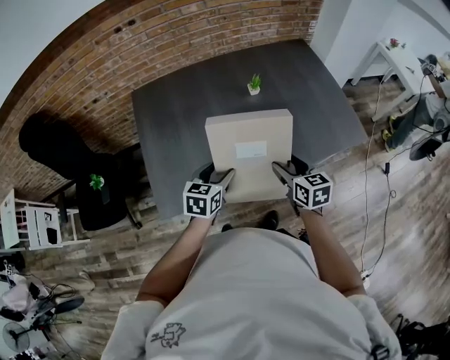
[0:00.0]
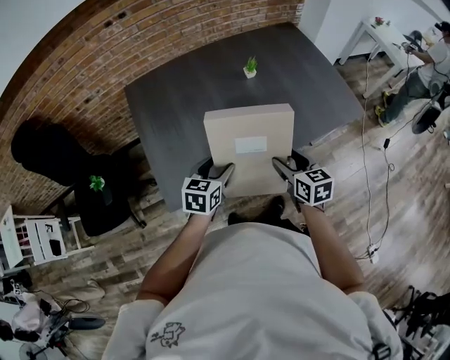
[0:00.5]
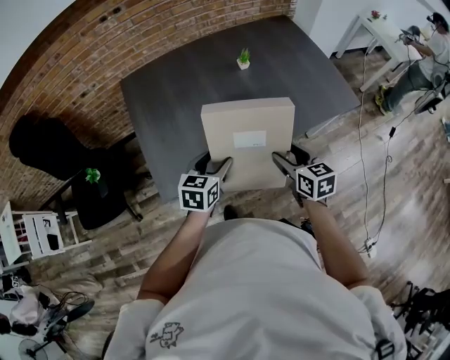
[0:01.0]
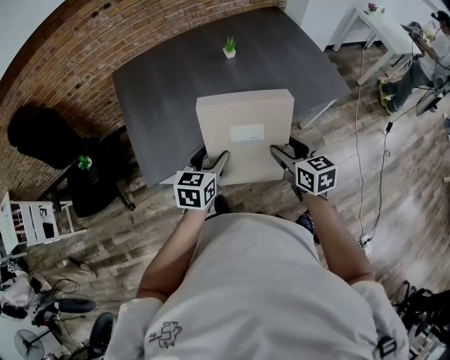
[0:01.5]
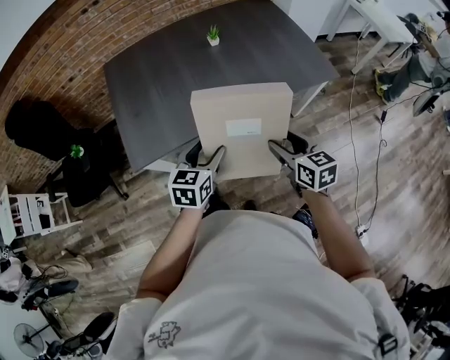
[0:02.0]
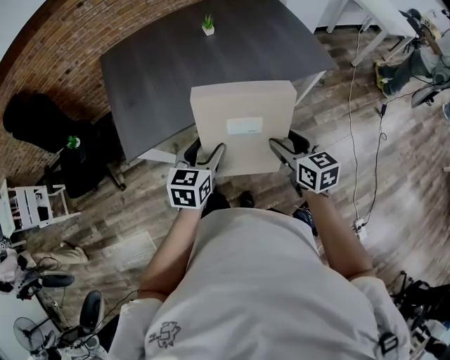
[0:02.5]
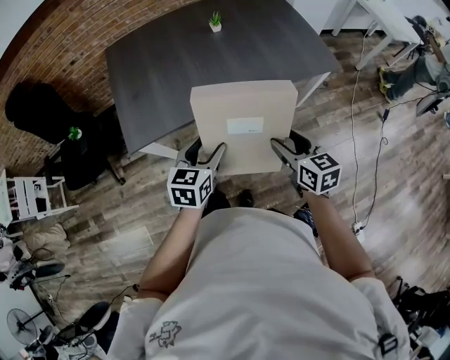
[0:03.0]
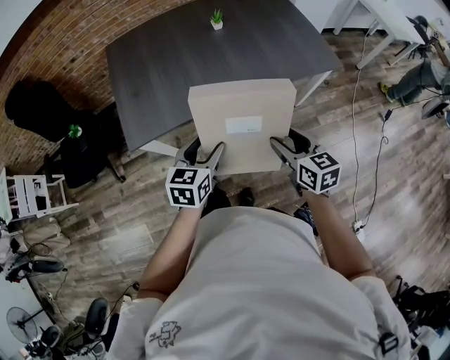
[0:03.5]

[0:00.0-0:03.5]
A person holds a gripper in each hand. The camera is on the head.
0:00.0 to 0:02.0: Both grippers move backward and to the right, some 20 cm.
0:02.0 to 0:03.5: The left gripper travels backward by approximately 5 cm.

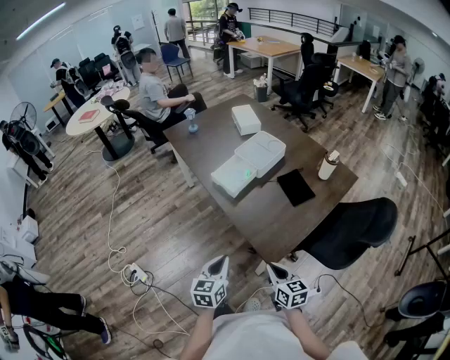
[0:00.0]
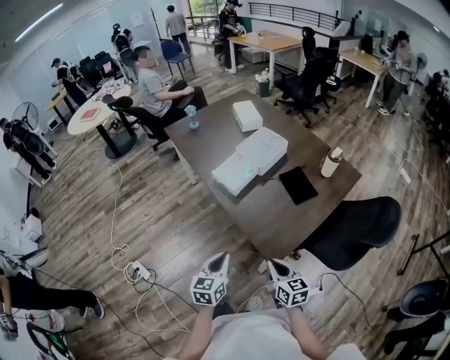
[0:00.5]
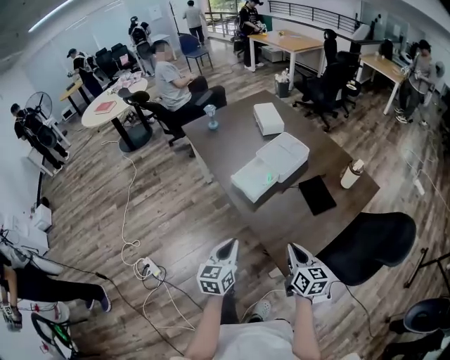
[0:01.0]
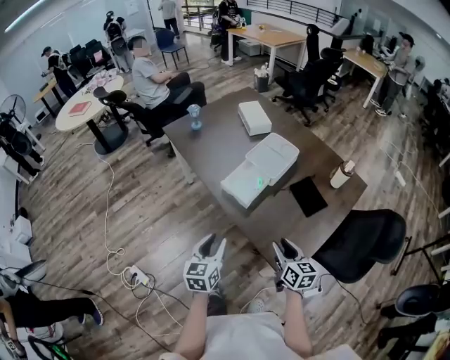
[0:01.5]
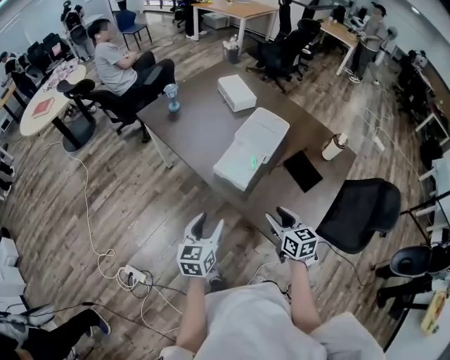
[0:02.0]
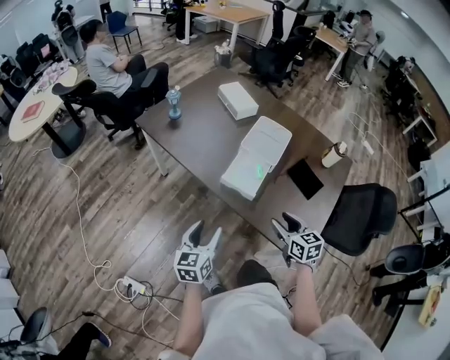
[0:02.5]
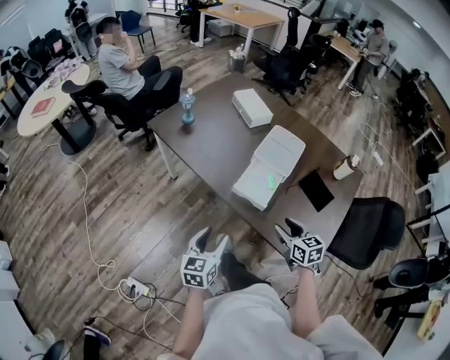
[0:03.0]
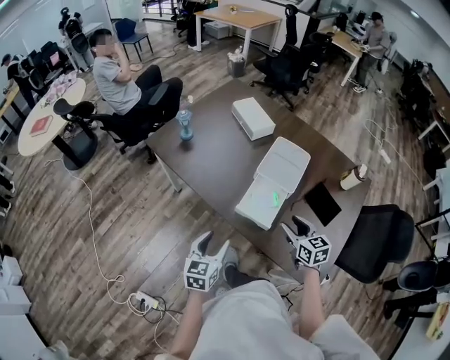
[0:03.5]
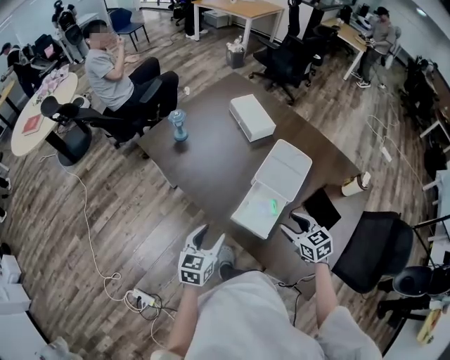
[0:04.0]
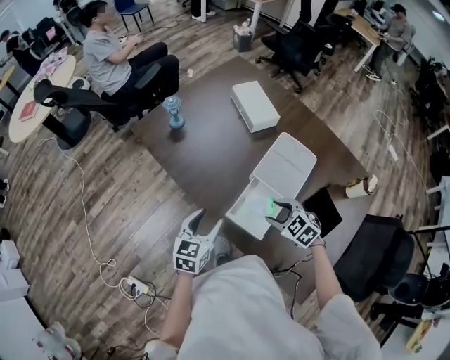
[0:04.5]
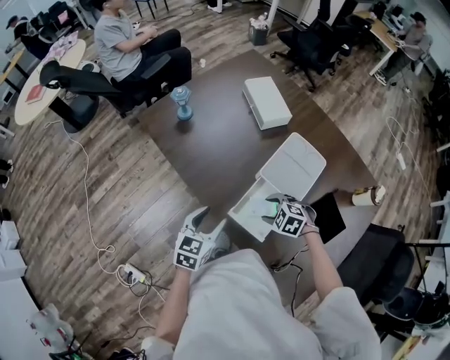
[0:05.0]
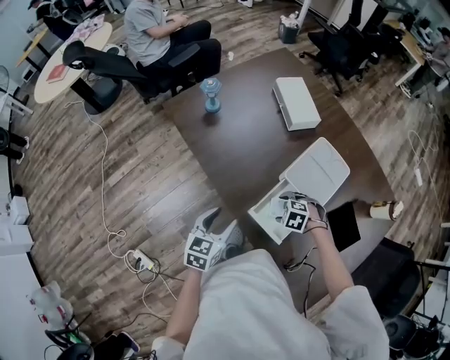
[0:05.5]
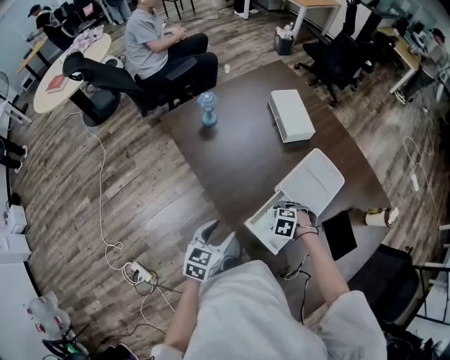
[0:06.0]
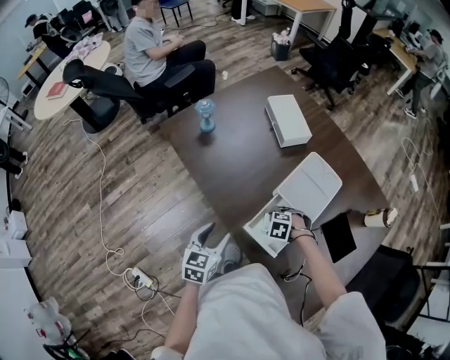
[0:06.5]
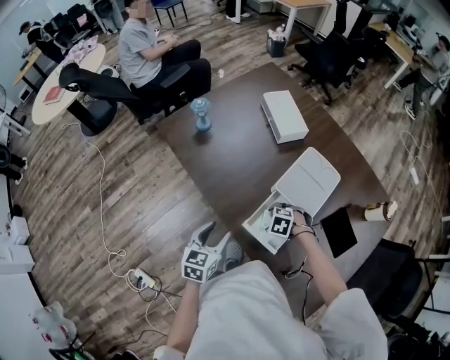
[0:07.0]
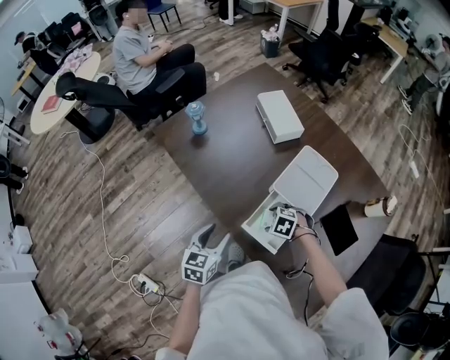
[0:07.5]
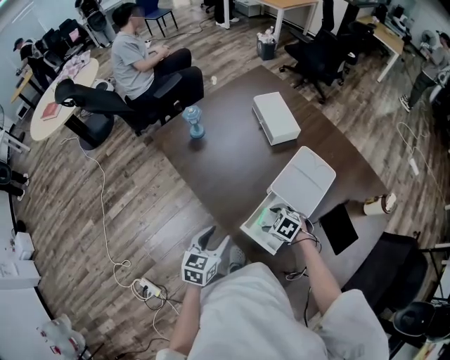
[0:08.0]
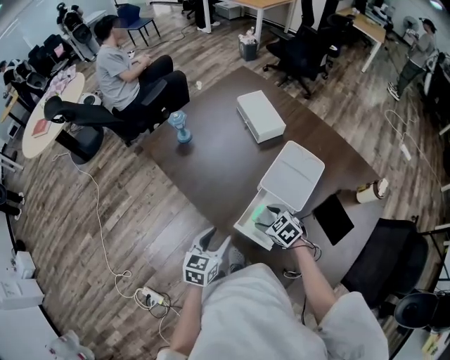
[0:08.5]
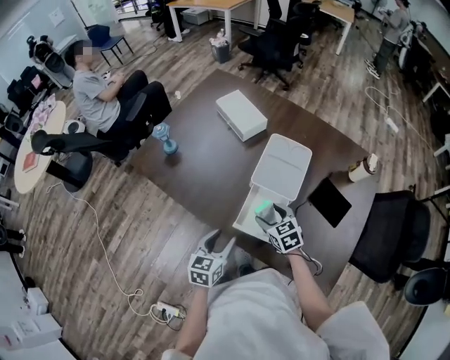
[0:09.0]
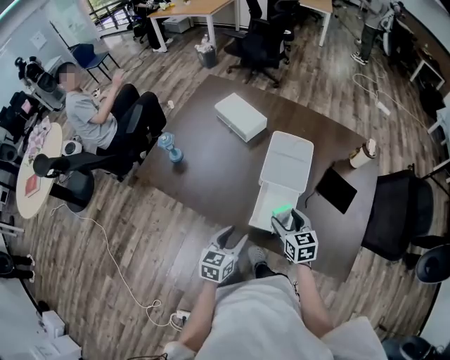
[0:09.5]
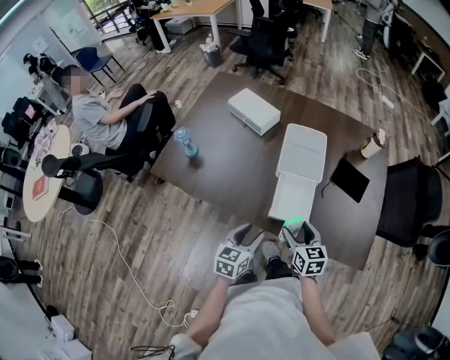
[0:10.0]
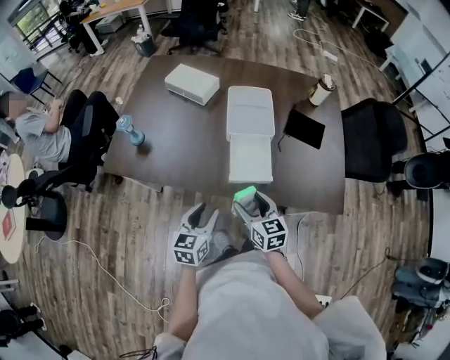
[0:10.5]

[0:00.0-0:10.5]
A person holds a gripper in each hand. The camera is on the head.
0:00.0 to 0:02.0: The left gripper goes roughly 30 cm forward and to the left, and opens. Meanwhile the right gripper is displaced forward by roughly 25 cm, and opens up.
0:02.0 to 0:04.0: Both grippers move forward, approximately 20 cm. The right gripper changes its angle by roughly 20 degrees.
0:04.0 to 0:06.5: The left gripper changes place by about 5 cm. Meanwhile the right gripper goes about 20 cm downward, and tips its fingers downward by approximately 40 degrees.
0:06.5 to 0:08.5: The right gripper is displaced upward by some 5 cm, and rotates roughly 50 degrees.
0:08.5 to 0:10.5: The right gripper changes place by approximately 20 cm, and changes its angle by approximately 70 degrees. Meanwhile the left gripper ends up roughly 10 cm from where it was, and turns by approximately 30 degrees.

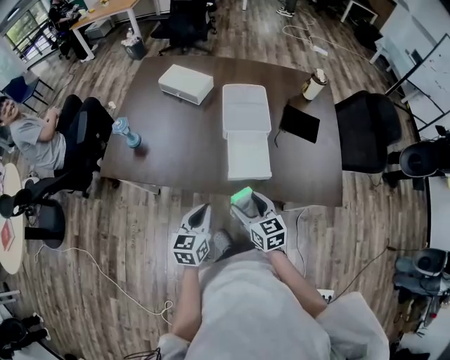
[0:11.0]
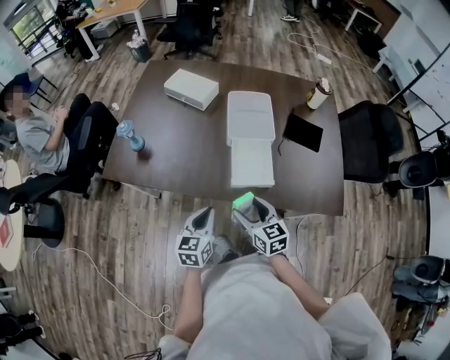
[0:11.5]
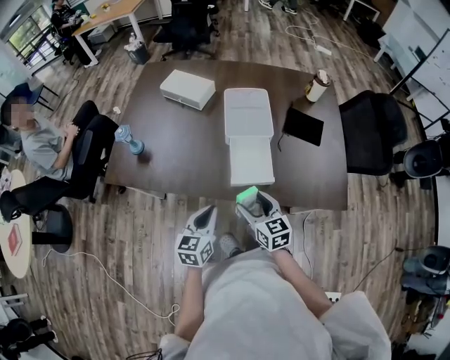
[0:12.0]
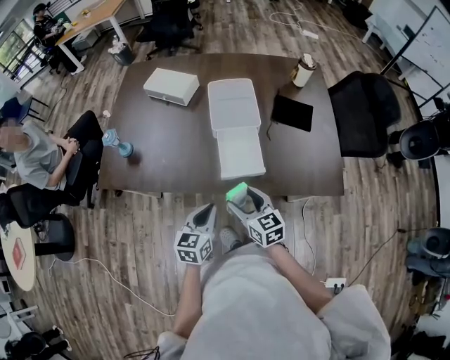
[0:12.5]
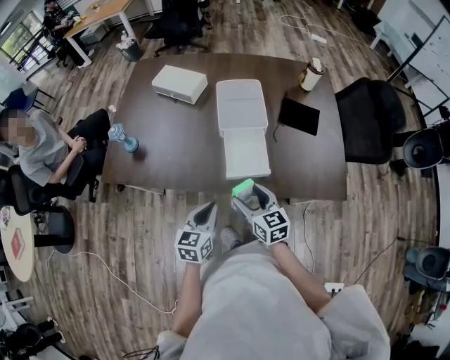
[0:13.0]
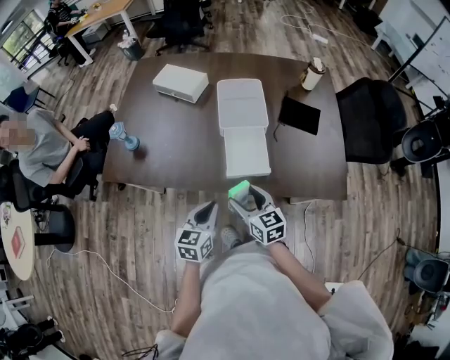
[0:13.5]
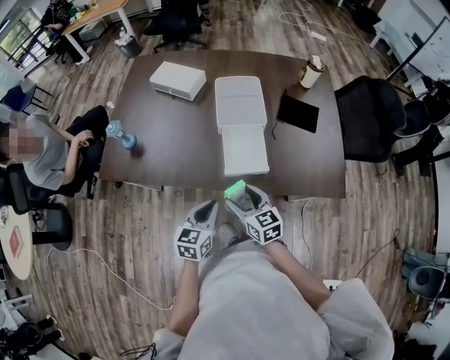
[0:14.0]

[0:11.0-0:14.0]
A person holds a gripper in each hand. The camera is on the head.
0:11.0 to 0:14.0: The grippers make only small movements.

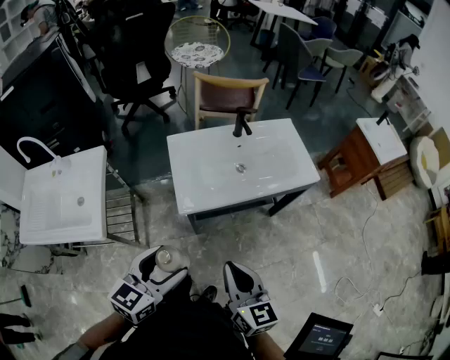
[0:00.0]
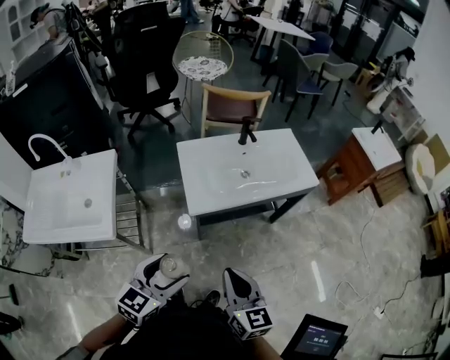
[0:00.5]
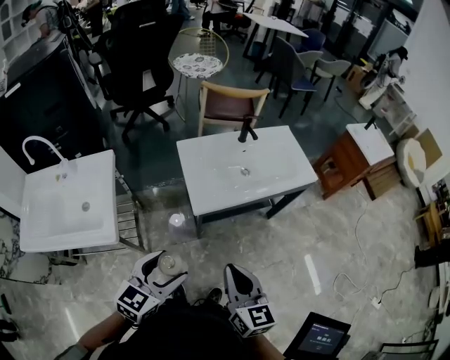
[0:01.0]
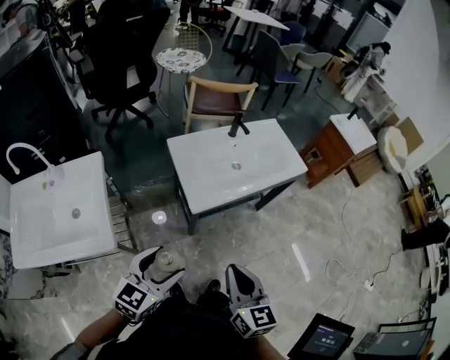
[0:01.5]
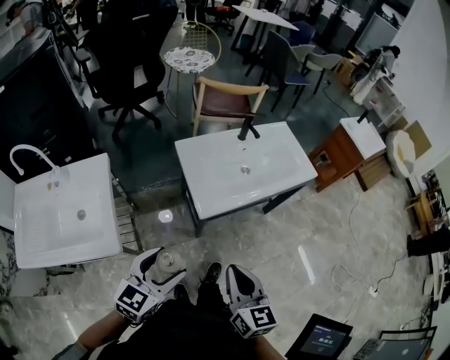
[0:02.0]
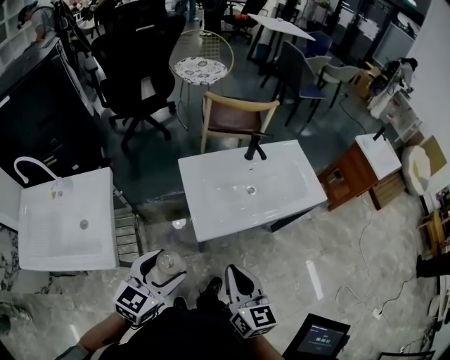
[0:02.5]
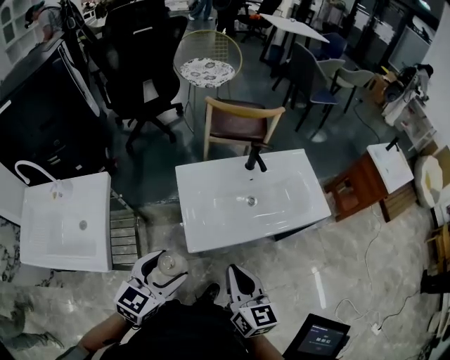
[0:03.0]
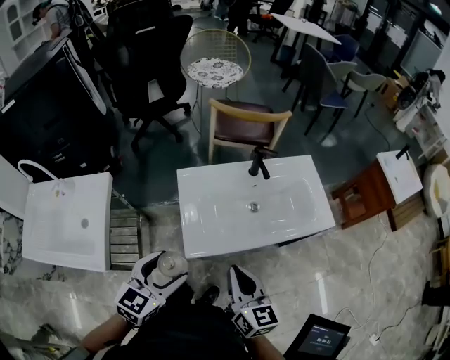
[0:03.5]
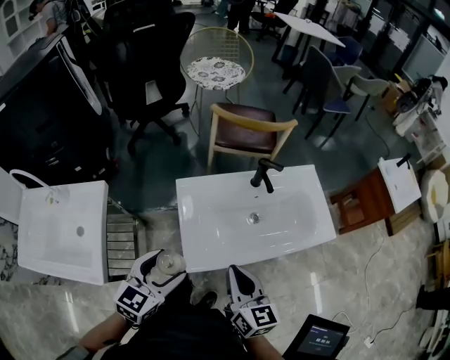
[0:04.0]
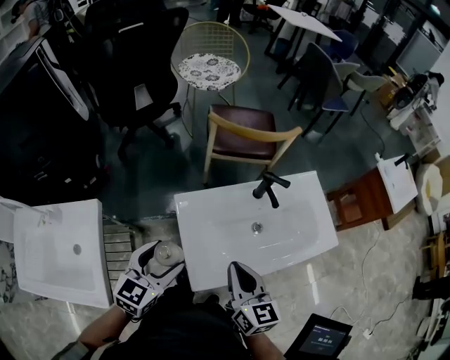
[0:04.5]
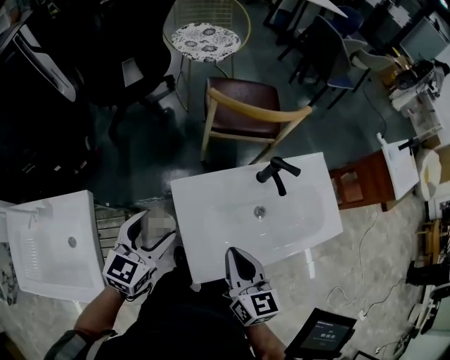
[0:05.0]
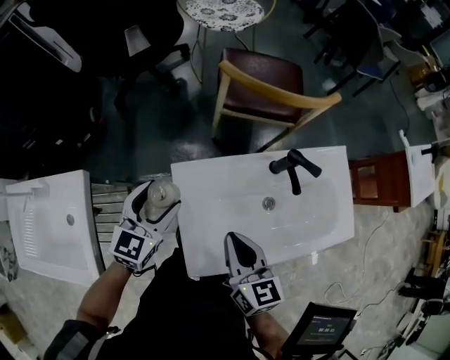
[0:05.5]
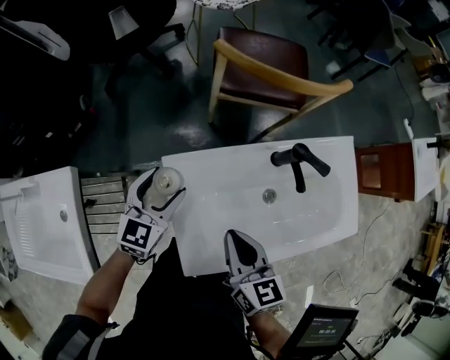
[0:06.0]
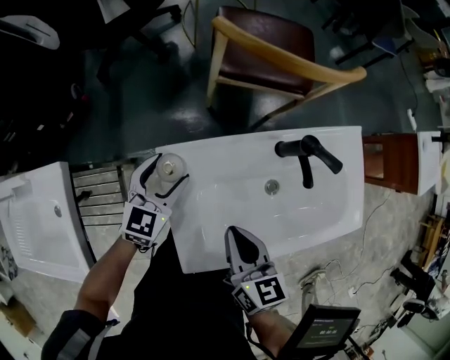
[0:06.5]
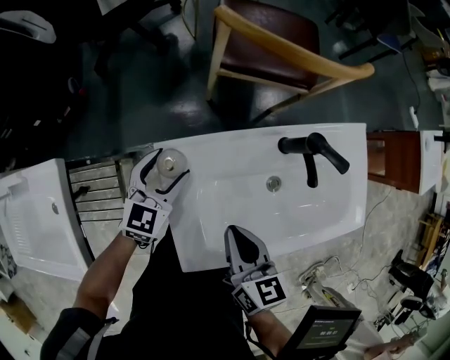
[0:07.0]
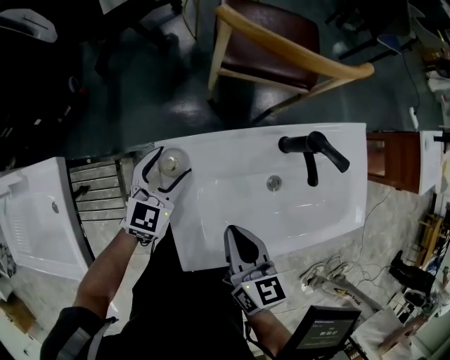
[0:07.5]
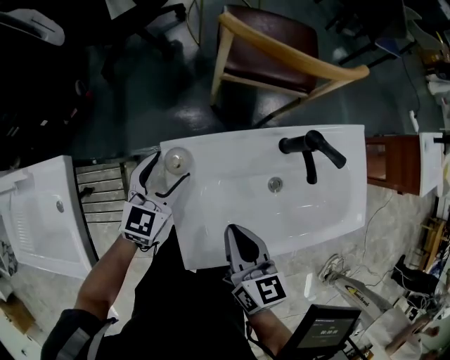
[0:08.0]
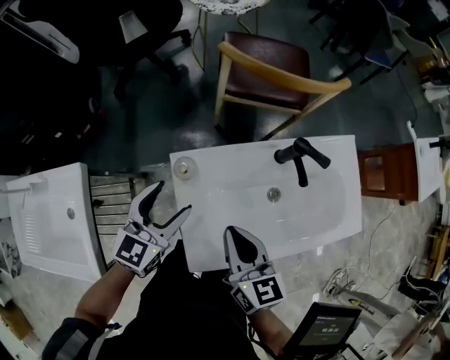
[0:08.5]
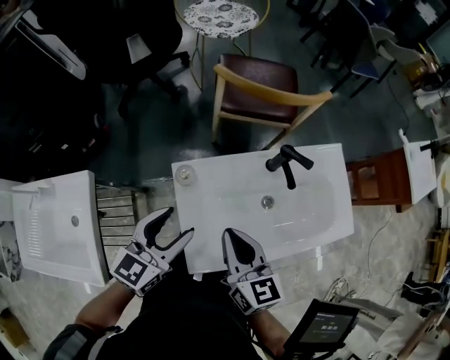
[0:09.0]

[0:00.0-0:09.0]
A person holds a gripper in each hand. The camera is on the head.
0:00.0 to 0:02.0: The right gripper goes about 15 cm to the left and backward; the left gripper travels to the left by about 15 cm.
0:02.0 to 0:04.5: The grippers both shift forward by about 35 cm.
0:04.5 to 0:07.0: The right gripper shifts approximately 15 cm downward and forward. Meanwhile the left gripper shifts some 30 cm forward and downward.
0:07.0 to 0:09.0: The right gripper heads upward, covering roughly 10 cm, while the left gripper moves upward and backward, roughly 25 cm.
